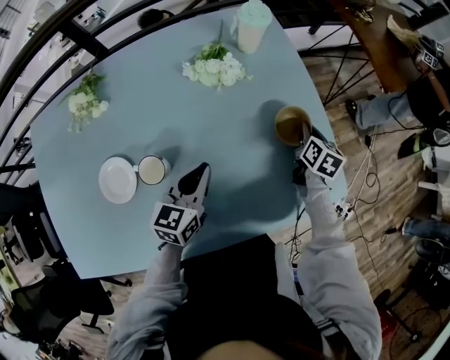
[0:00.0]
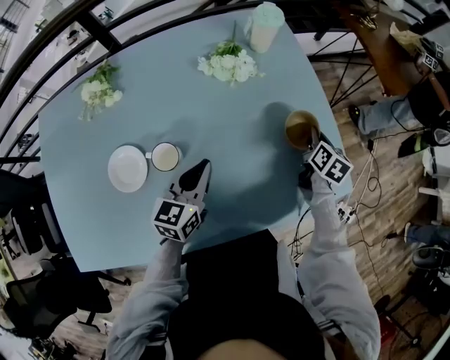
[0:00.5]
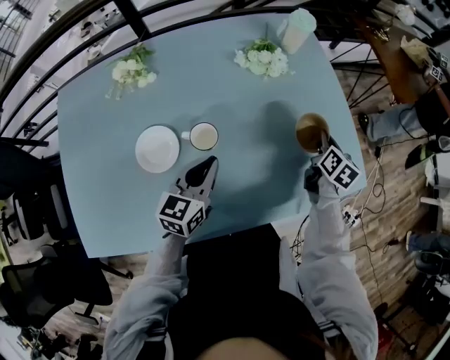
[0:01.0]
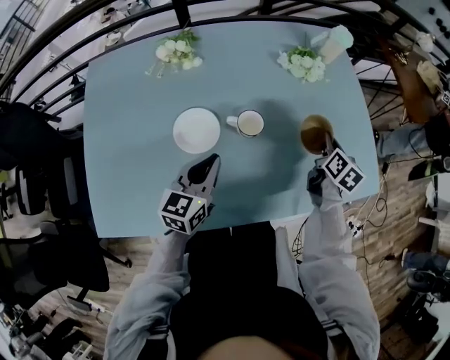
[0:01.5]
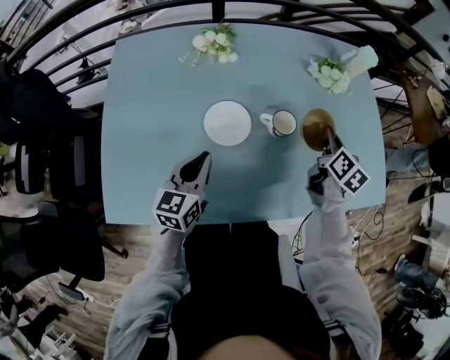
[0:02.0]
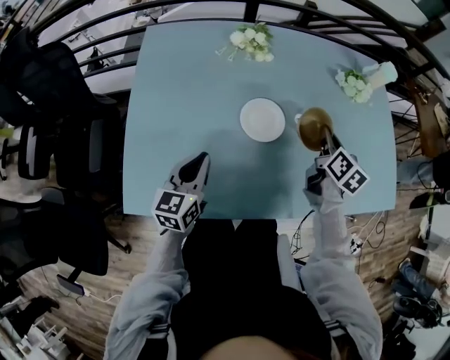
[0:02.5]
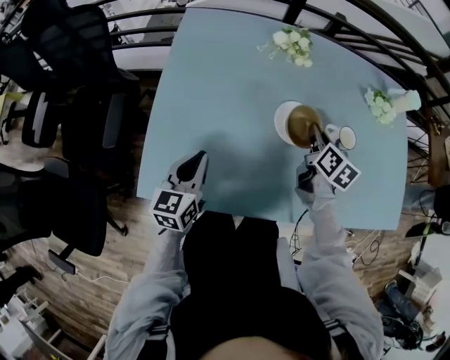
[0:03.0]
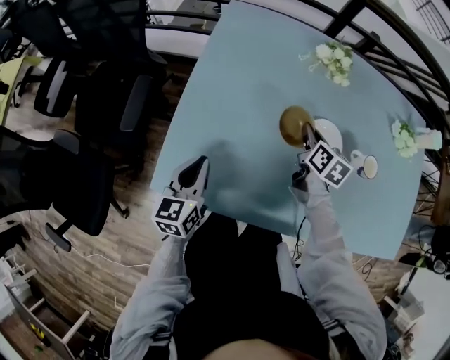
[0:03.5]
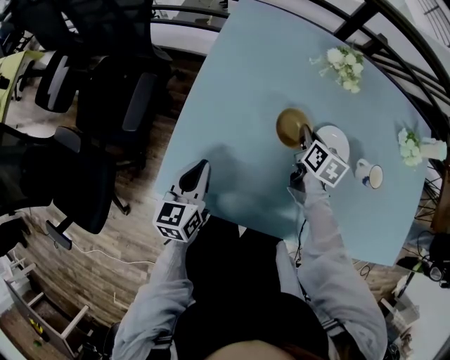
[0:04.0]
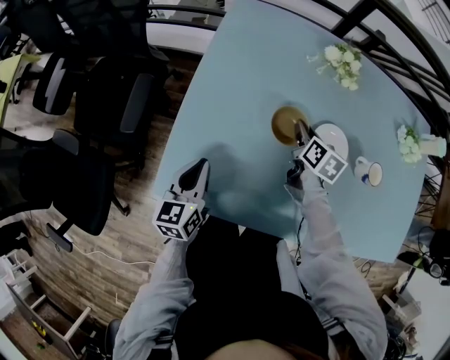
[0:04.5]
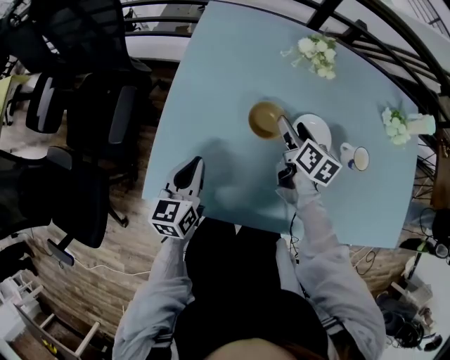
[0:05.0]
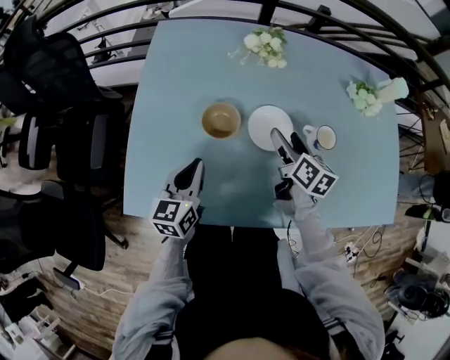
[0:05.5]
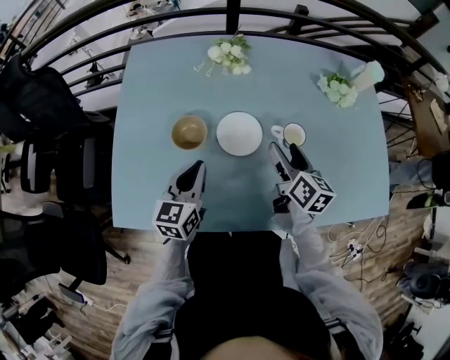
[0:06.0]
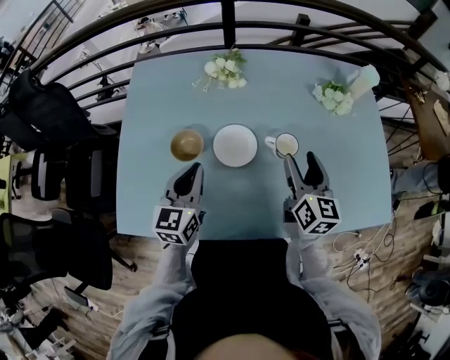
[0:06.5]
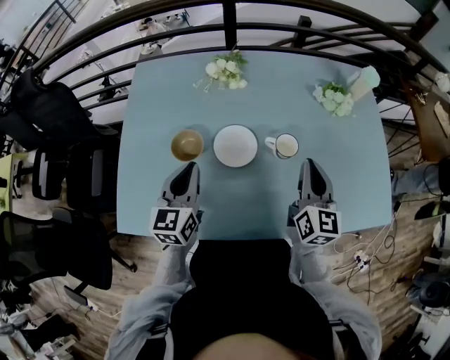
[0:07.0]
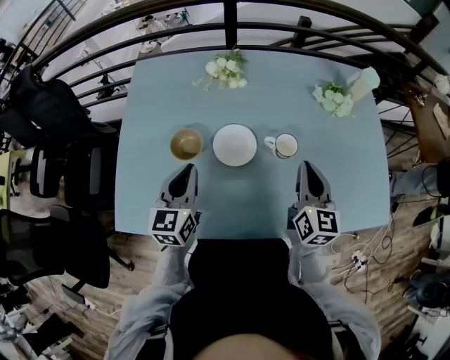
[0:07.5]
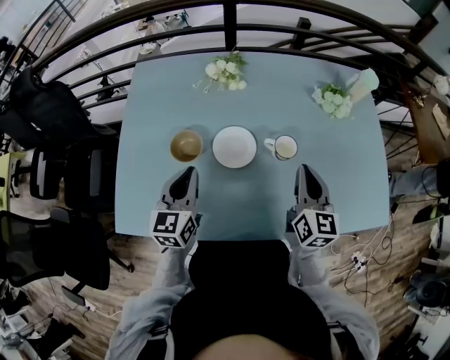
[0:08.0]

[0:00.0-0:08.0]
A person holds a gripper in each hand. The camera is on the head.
0:00.0 to 0:02.0: The right gripper heads to the left, backward and upward, covering about 35 cm, while the left gripper heads to the left and backward, covering approximately 35 cm.
0:02.0 to 0:04.0: The right gripper changes place by roughly 40 cm, and swivels some 30 degrees. The left gripper changes place by about 30 cm, and turns by some 30 degrees.
0:04.0 to 0:06.0: The right gripper shifts some 25 cm to the right, upward and backward, turns by approximately 20 degrees, and opens its fingers, while the left gripper is displaced to the right by about 25 cm, and changes its angle by about 20 degrees.
0:06.0 to 0:08.0: The right gripper is displaced to the right and upward by roughly 10 cm, rotates some 20 degrees, and closes up.

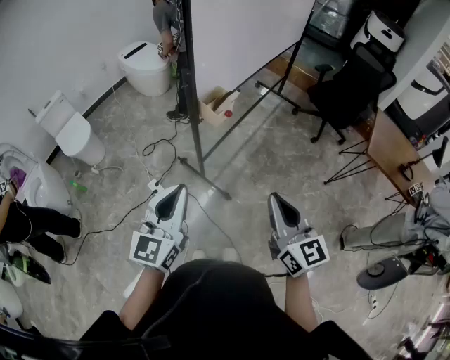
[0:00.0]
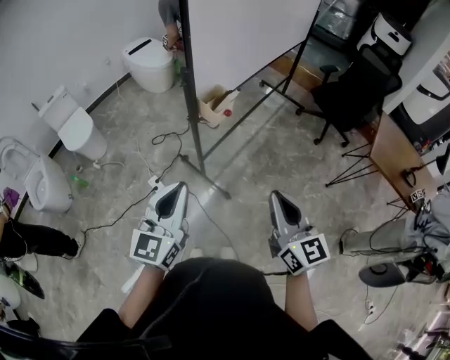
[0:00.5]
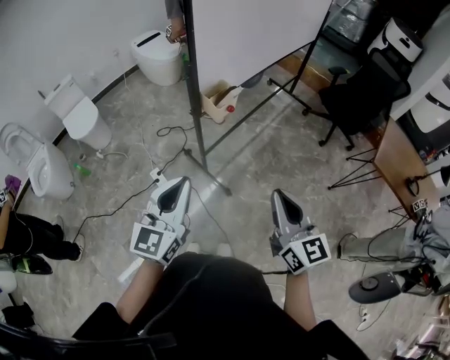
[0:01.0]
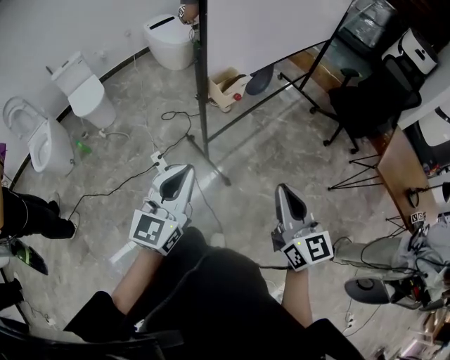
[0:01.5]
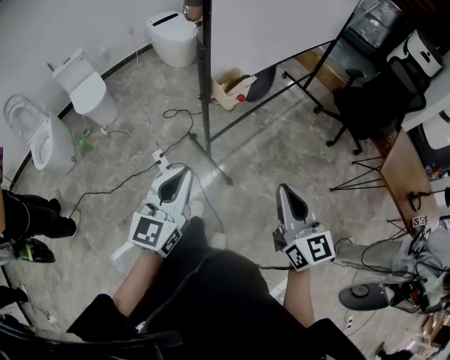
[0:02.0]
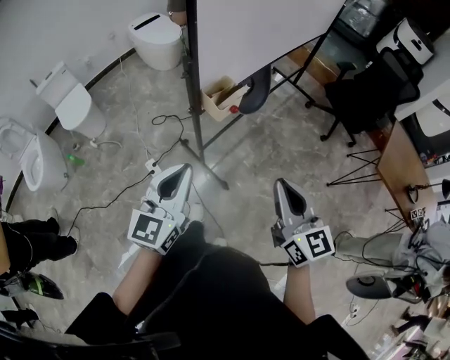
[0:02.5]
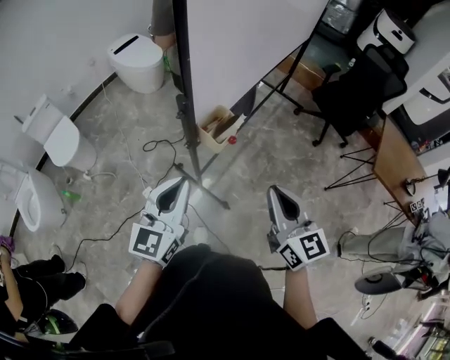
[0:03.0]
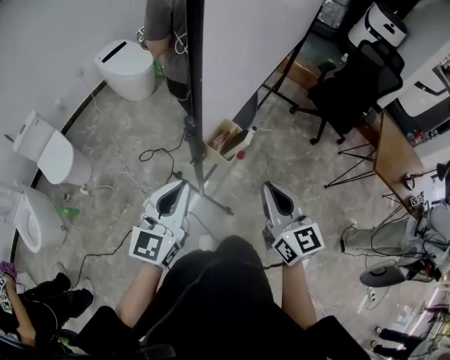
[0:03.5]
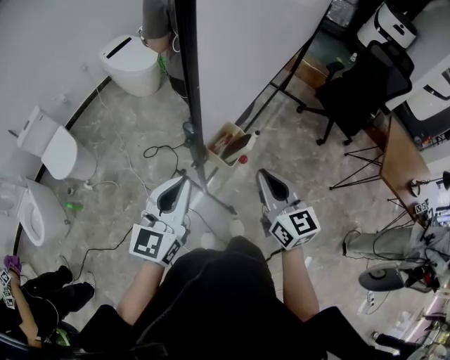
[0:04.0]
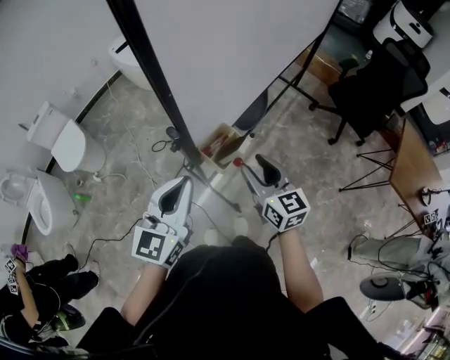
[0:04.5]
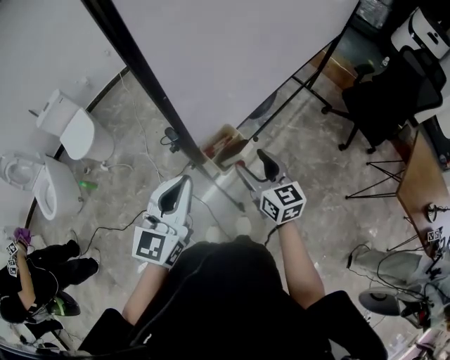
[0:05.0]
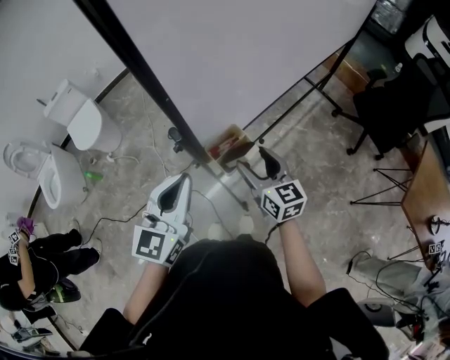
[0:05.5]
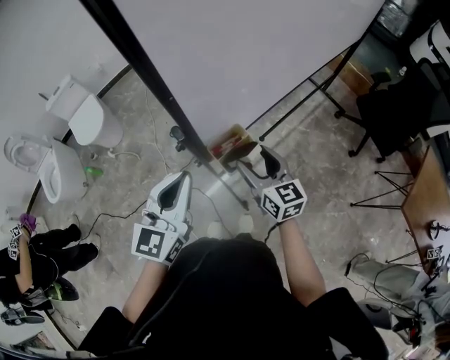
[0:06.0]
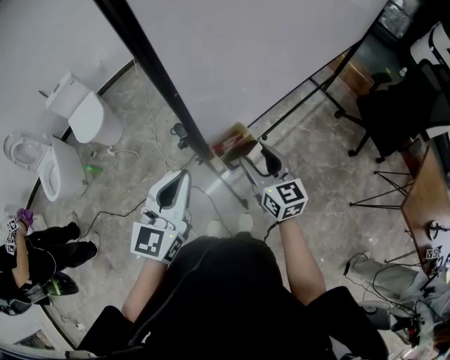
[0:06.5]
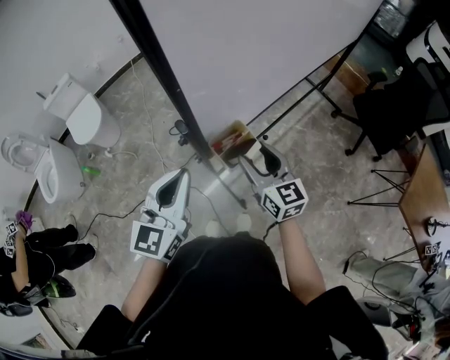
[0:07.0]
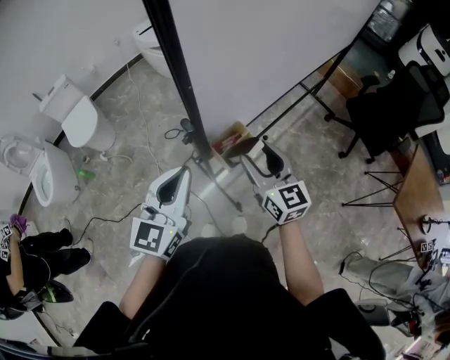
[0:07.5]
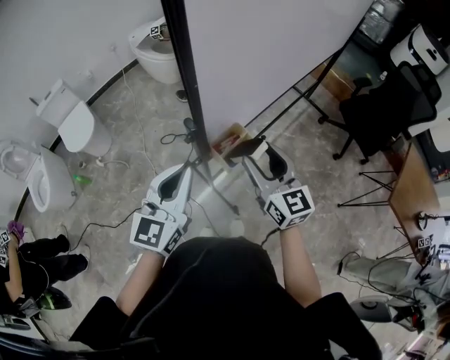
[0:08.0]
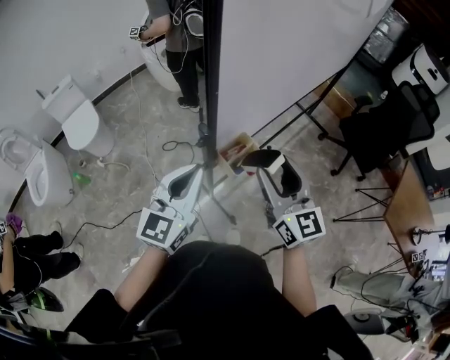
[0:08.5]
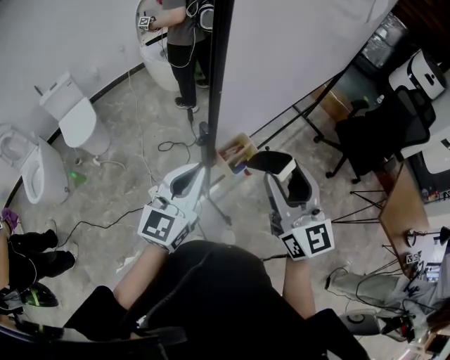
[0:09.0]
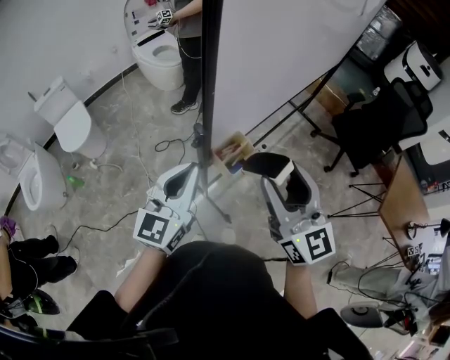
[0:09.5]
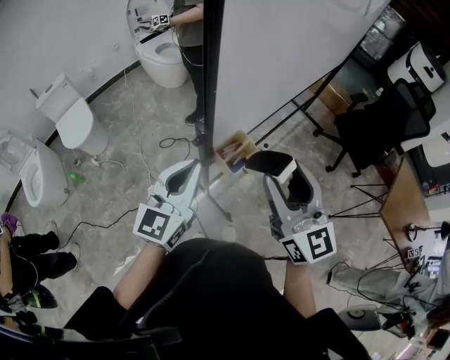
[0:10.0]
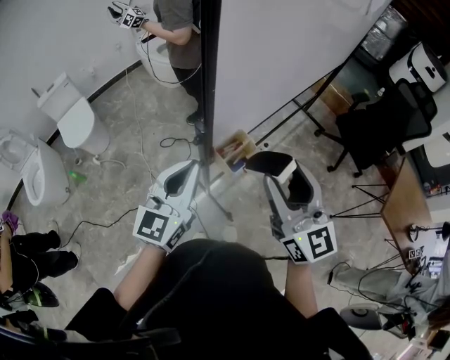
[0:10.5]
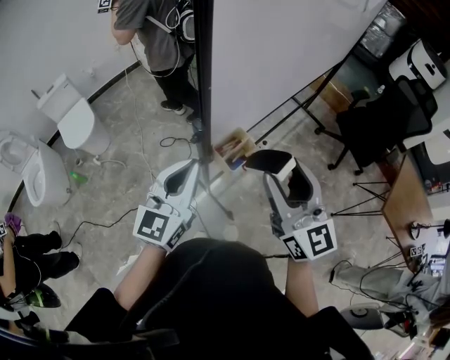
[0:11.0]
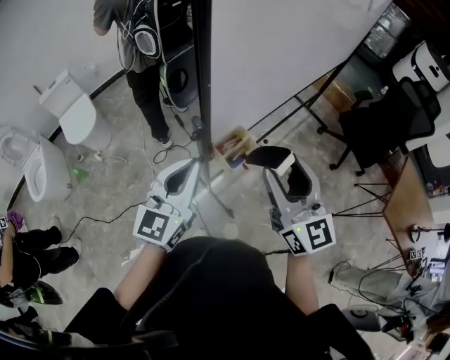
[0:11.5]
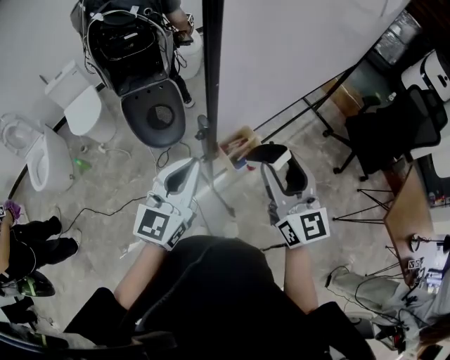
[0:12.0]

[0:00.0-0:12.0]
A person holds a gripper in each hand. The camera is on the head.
0:00.0 to 0:02.0: The right gripper changes place by approximately 5 cm.
0:02.0 to 0:04.0: The right gripper is displaced forward and to the left by roughly 30 cm, while the left gripper goes approximately 25 cm forward.
0:04.0 to 0:06.0: The right gripper travels forward and downward by approximately 15 cm, and opens its fingers.
0:06.0 to 0:08.0: The right gripper is displaced upward by roughly 10 cm.
0:08.0 to 0:10.0: The right gripper travels upward and backward by some 15 cm.
0:10.0 to 0:12.0: The right gripper travels downward by roughly 5 cm.

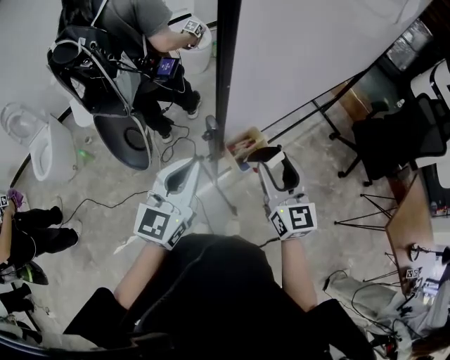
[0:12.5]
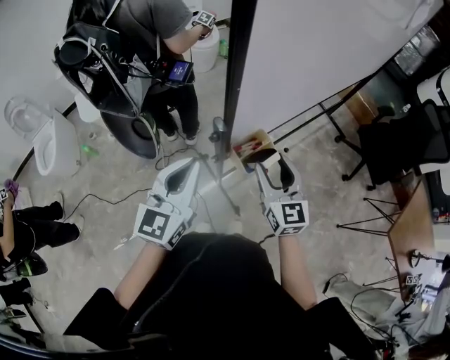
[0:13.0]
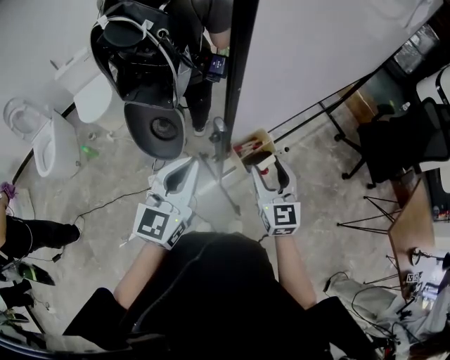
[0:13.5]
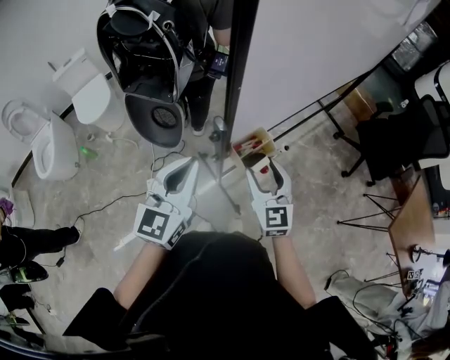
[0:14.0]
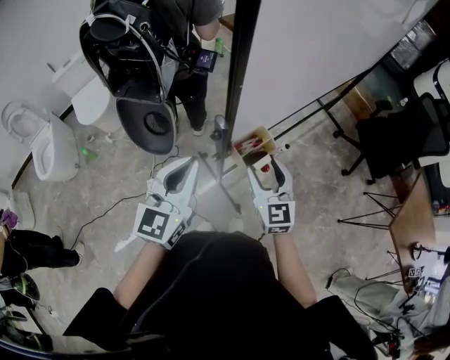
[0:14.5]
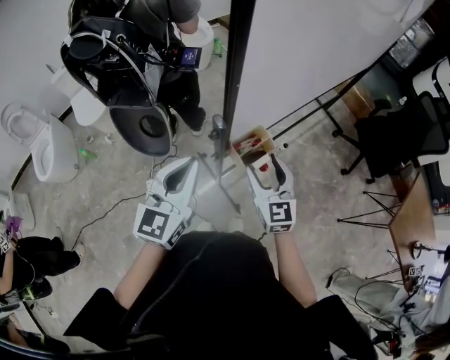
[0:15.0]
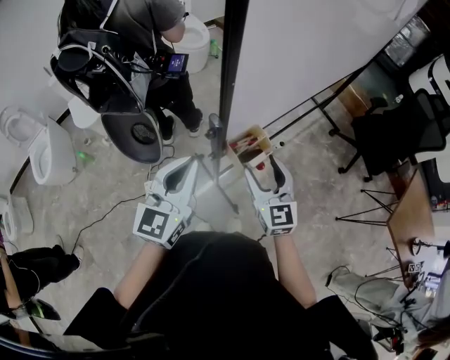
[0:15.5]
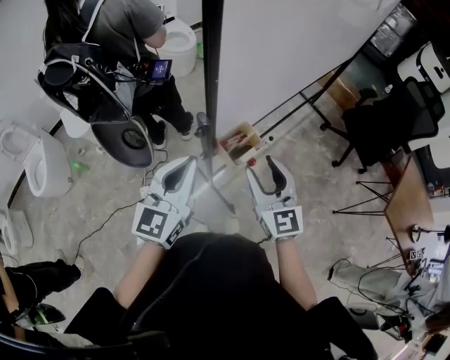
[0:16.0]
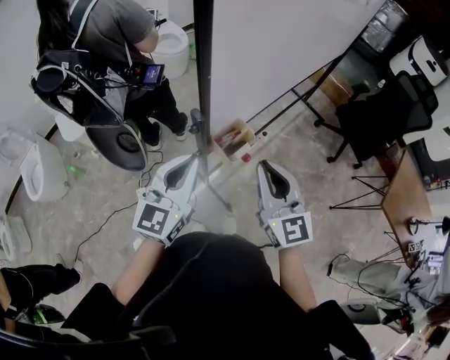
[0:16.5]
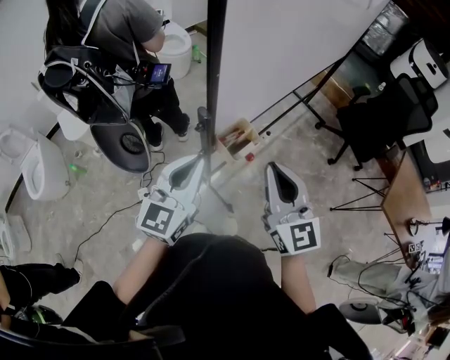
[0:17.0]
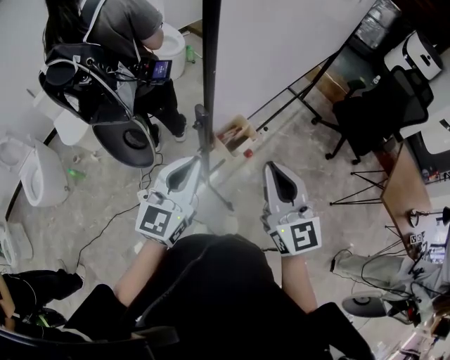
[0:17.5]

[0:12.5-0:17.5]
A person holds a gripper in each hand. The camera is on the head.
0:12.5 to 0:15.0: The right gripper travels downward by about 5 cm.
0:15.0 to 0:17.5: The right gripper shifts some 20 cm upward and backward, and closes its fingers. The left gripper shifts by roughly 5 cm.

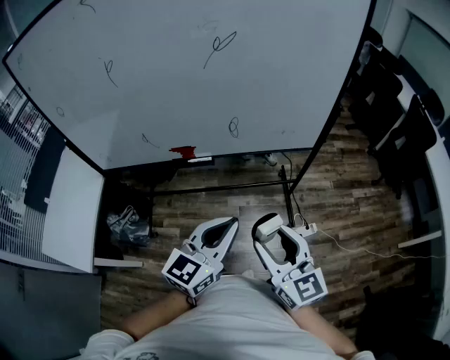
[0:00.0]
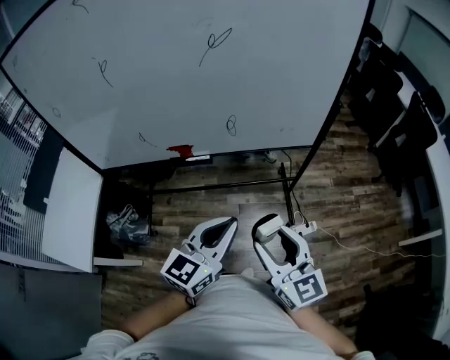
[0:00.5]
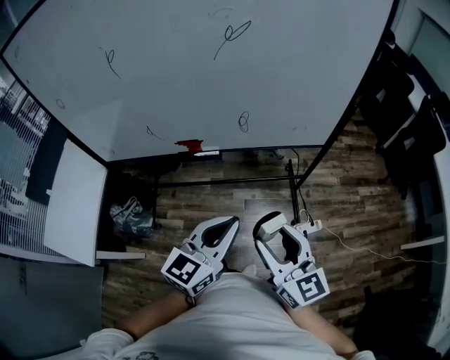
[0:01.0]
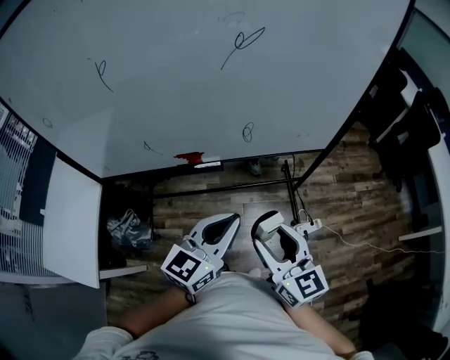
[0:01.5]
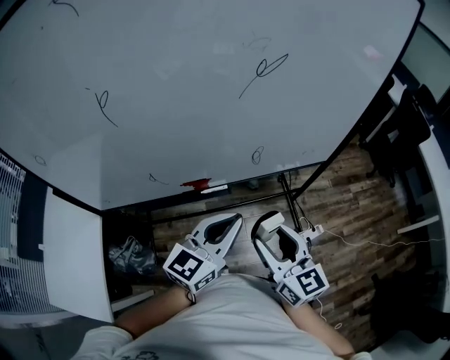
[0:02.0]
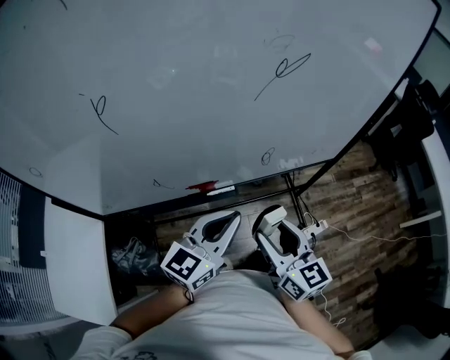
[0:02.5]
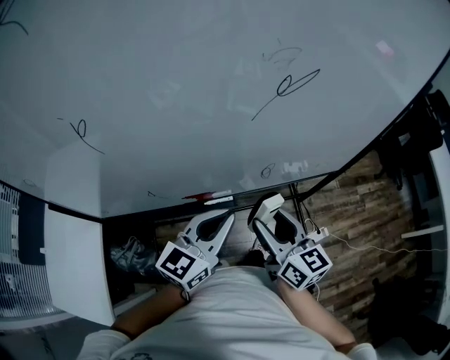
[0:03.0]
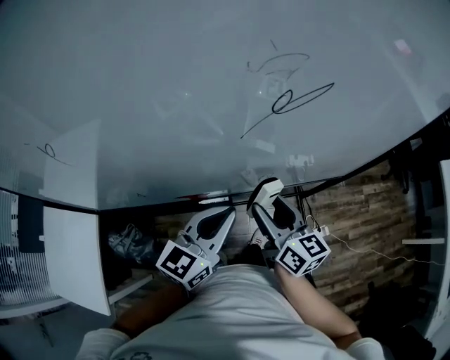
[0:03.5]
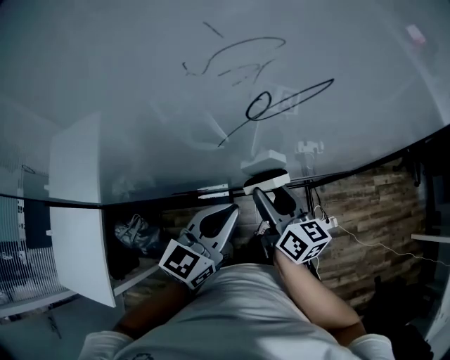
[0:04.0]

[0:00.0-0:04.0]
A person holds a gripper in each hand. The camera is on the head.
0:00.0 to 0:02.0: The right gripper is displaced to the left and forward by some 20 cm. The left gripper shifts approximately 20 cm forward and to the left.
0:02.0 to 0:04.0: The left gripper moves forward, about 15 cm; the right gripper heads forward, covering roughly 25 cm, and turns by roughly 30 degrees.
